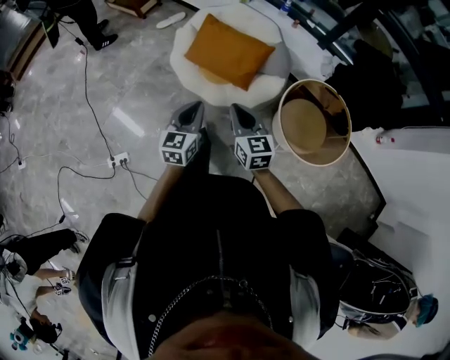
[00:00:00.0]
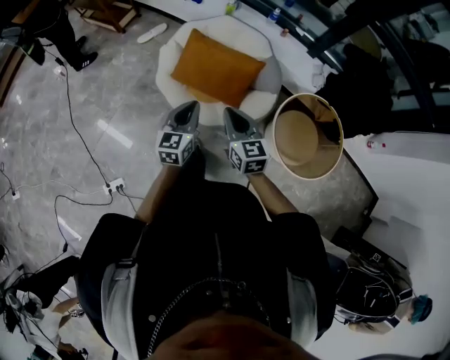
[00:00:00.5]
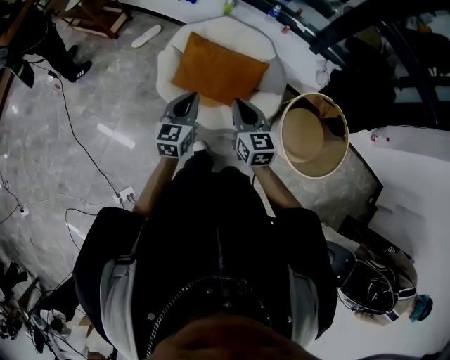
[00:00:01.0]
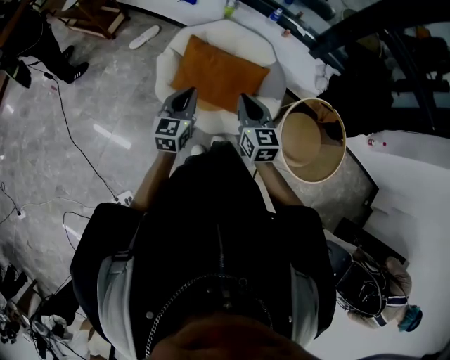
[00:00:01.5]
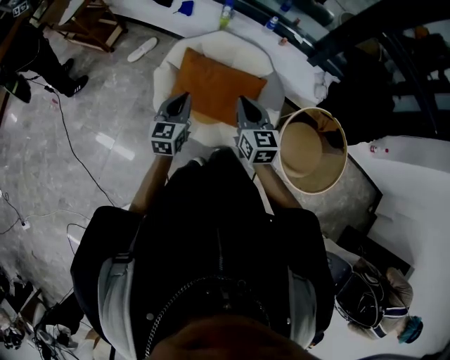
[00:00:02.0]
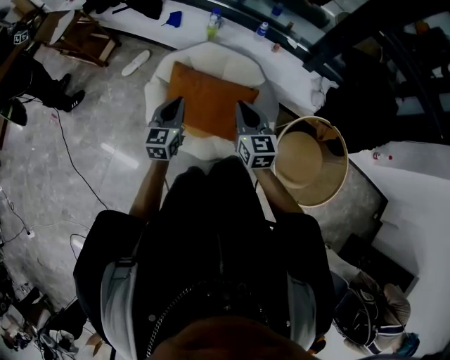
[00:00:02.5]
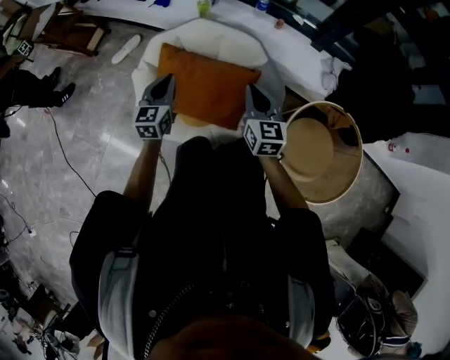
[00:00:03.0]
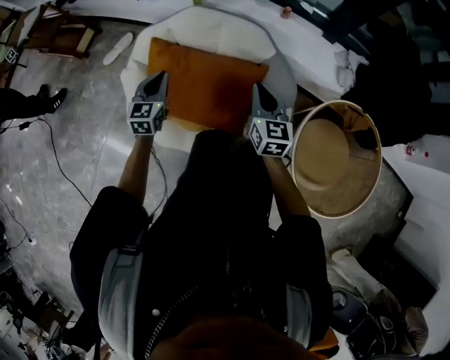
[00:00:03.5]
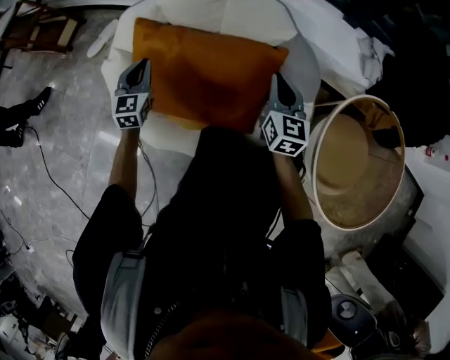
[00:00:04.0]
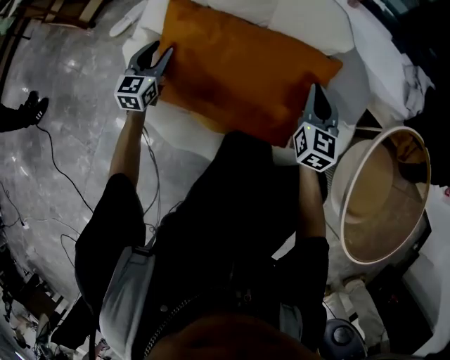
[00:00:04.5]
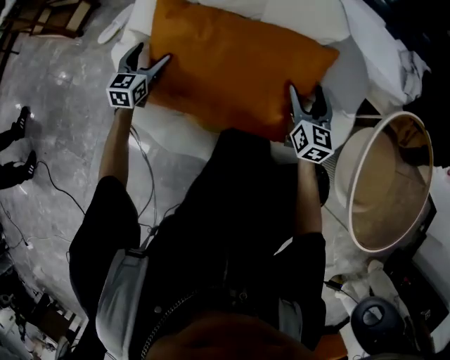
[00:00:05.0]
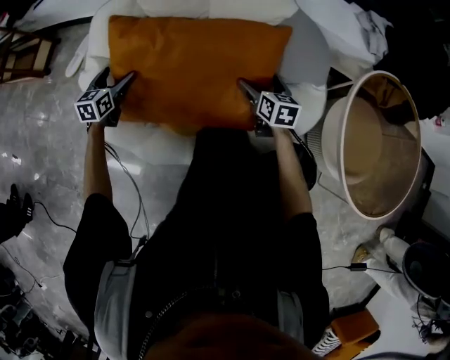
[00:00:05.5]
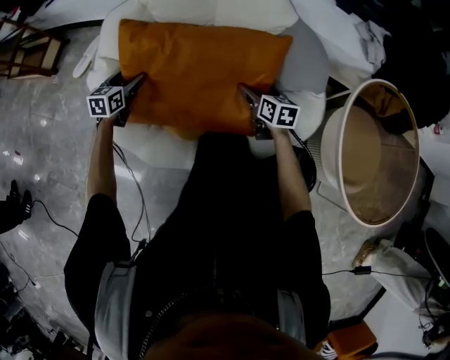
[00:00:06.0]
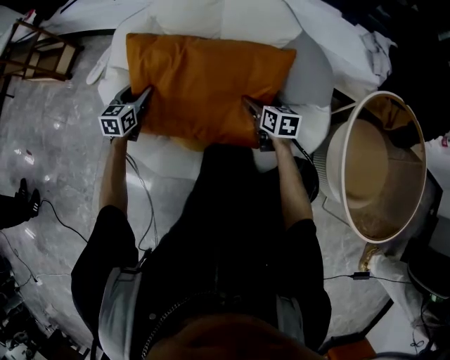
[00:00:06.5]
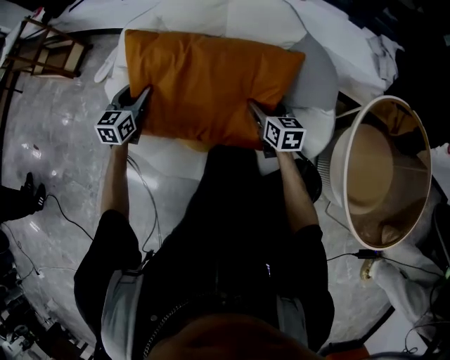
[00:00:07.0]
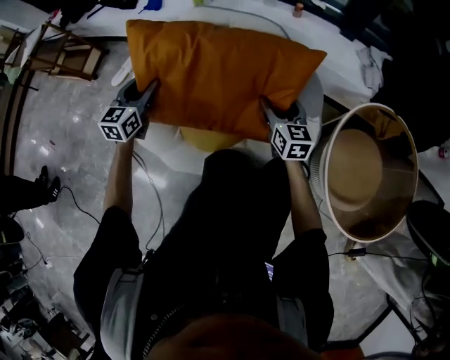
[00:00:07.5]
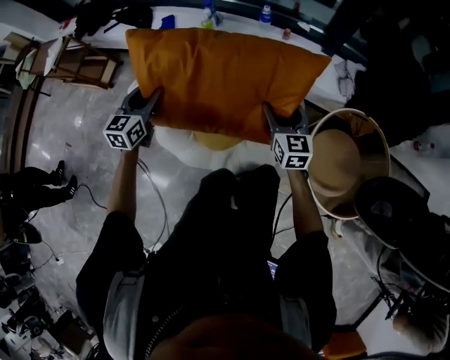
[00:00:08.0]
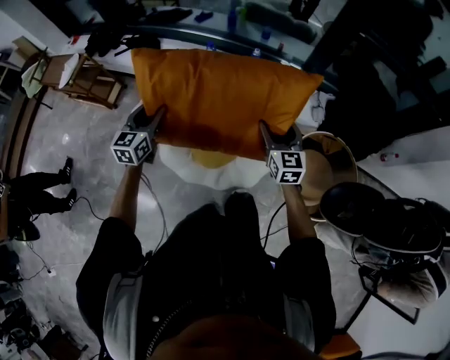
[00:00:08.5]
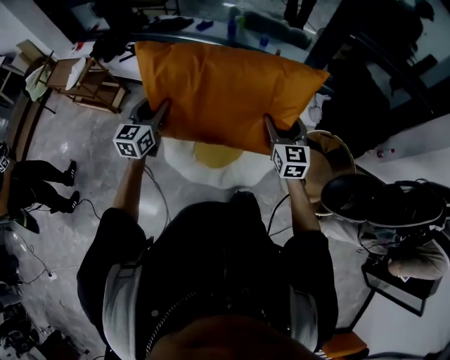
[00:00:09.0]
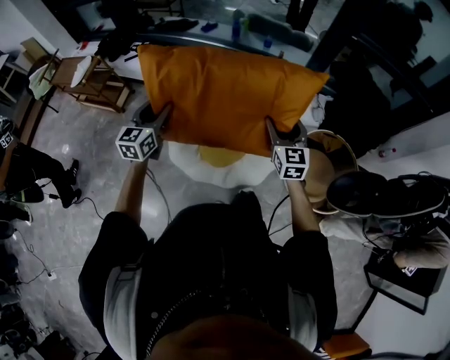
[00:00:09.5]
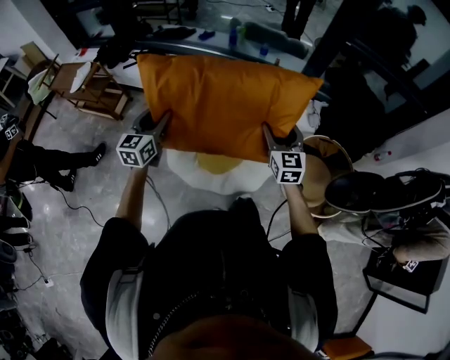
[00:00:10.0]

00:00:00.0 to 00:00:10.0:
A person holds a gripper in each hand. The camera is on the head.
00:00:00.0 to 00:00:02.0: Both grippers move forward, some 35 cm.
00:00:02.0 to 00:00:04.0: The right gripper heads downward, to the right and forward, covering about 50 cm; the left gripper shifts some 50 cm downward and forward.
00:00:04.0 to 00:00:06.0: The left gripper shifts some 15 cm downward and to the left, turns by roughly 30 degrees, and opens; the right gripper shifts about 25 cm downward, swivels approximately 30 degrees, and opens its fingers.
00:00:06.0 to 00:00:08.0: The grippers both shift upward by approximately 50 cm. The right gripper turns by about 30 degrees.
00:00:08.0 to 00:00:10.0: Both grippers travel together upward and backward, roughly 30 cm.

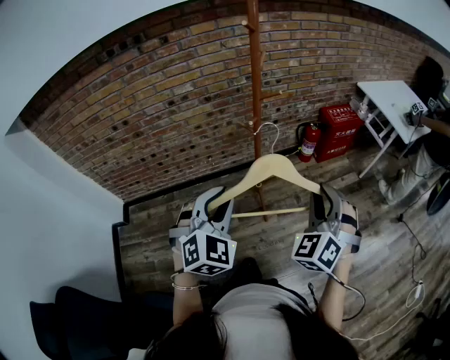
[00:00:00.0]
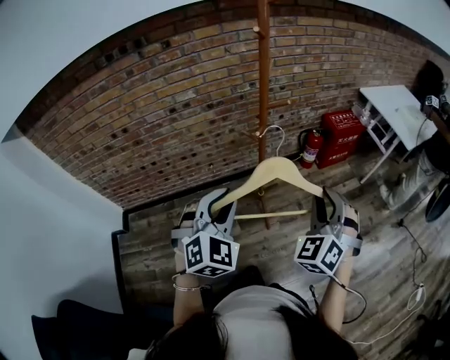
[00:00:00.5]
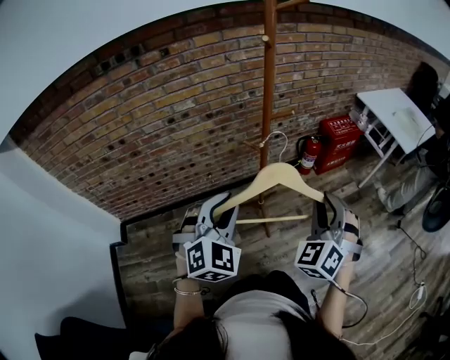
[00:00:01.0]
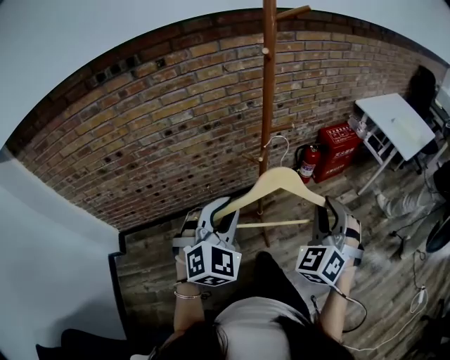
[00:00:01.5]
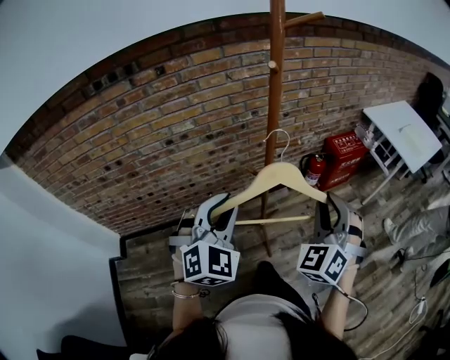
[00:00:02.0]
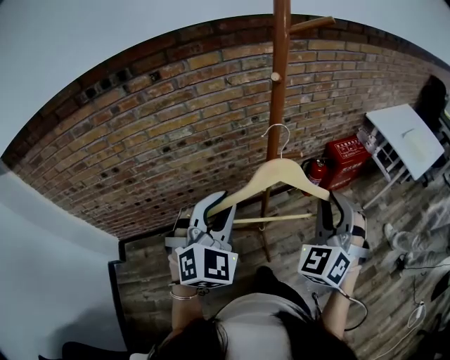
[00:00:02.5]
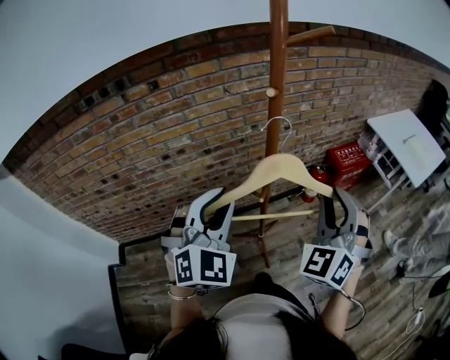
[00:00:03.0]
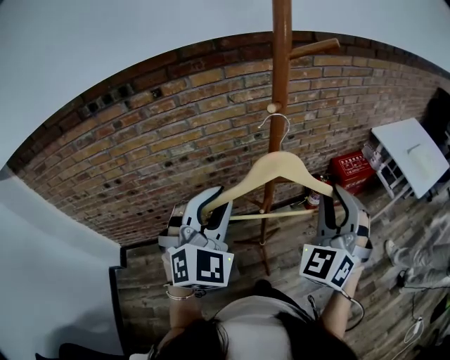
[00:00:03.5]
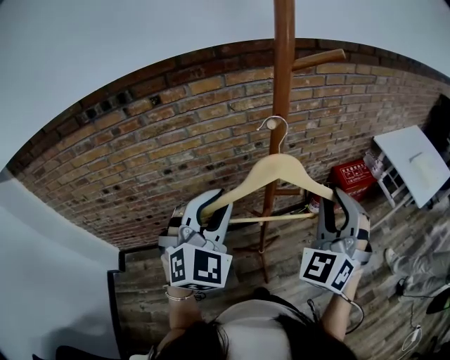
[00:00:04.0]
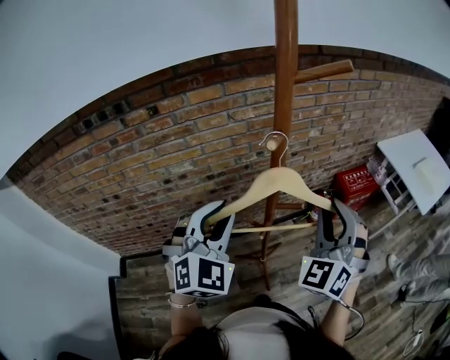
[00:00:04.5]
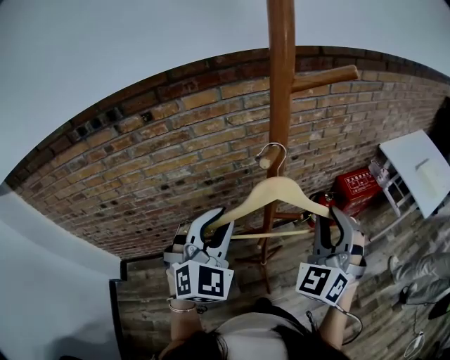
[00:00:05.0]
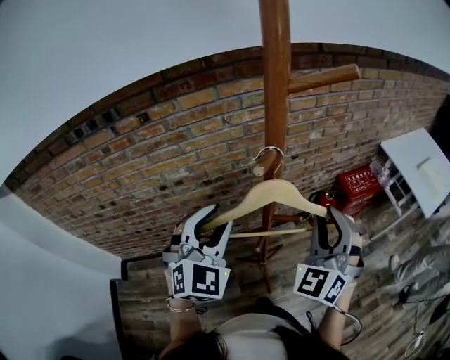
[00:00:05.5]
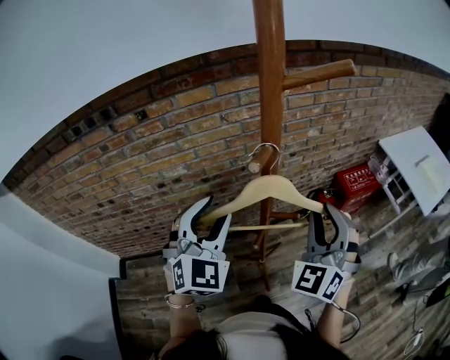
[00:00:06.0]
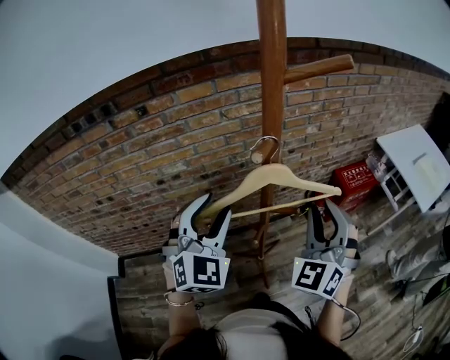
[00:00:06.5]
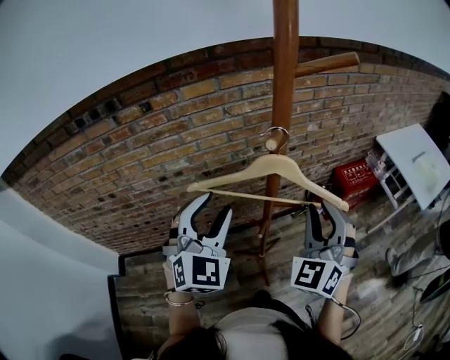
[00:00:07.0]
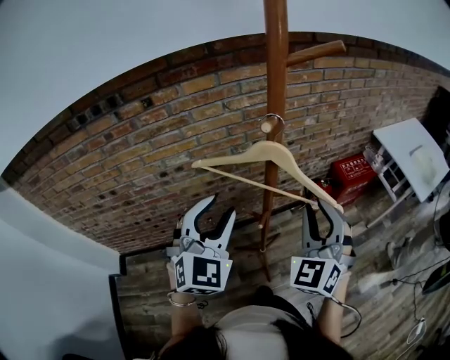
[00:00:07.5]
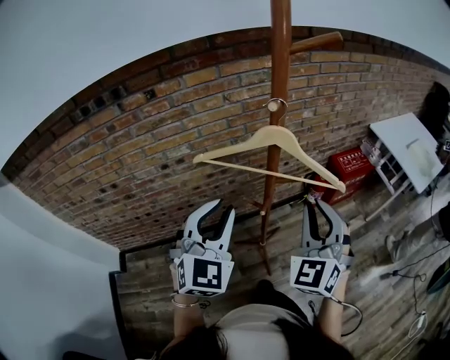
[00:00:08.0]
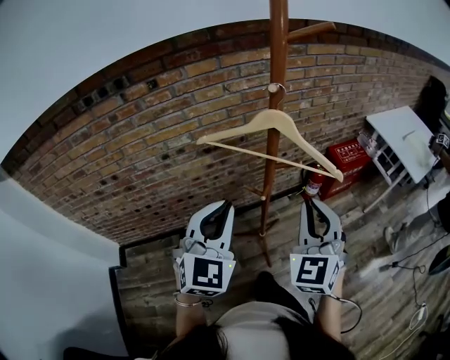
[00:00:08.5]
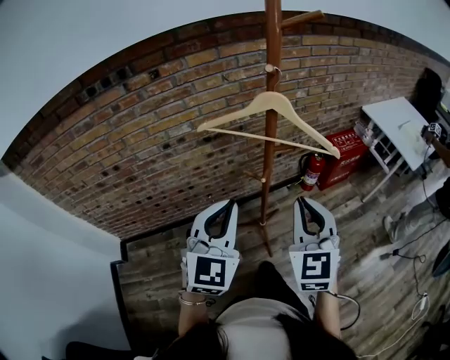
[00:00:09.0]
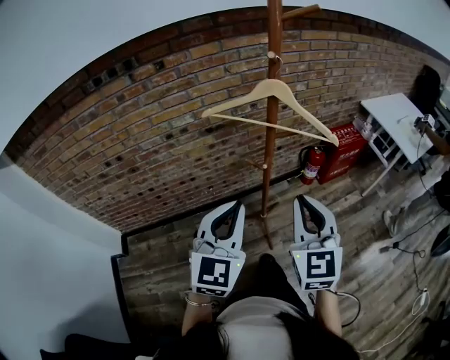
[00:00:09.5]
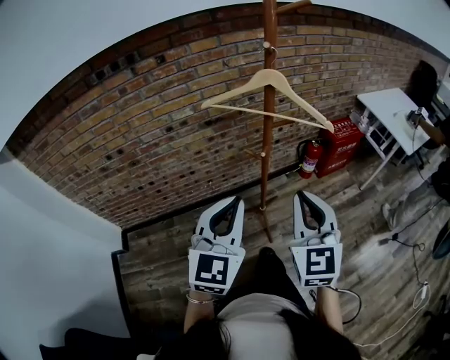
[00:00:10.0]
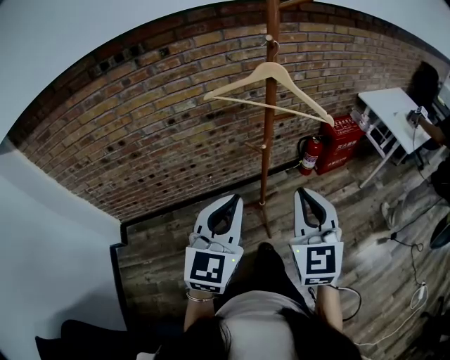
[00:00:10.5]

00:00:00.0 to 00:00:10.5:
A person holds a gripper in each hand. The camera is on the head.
00:00:00.0 to 00:00:02.0: Both grippers travel together forward and to the left, some 20 cm.
00:00:02.0 to 00:00:04.0: The grippers both shift forward and upward by about 15 cm.
00:00:04.0 to 00:00:06.5: Both grippers travel together forward, roughly 5 cm. The left gripper opens its fingers.
00:00:06.5 to 00:00:08.5: The grippers both shift backward by approximately 15 cm. The left gripper closes its fingers.
00:00:08.5 to 00:00:10.5: Both grippers move backward, approximately 15 cm.

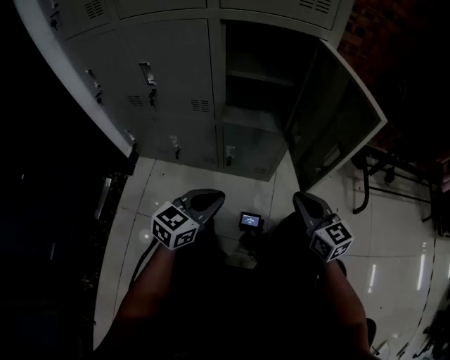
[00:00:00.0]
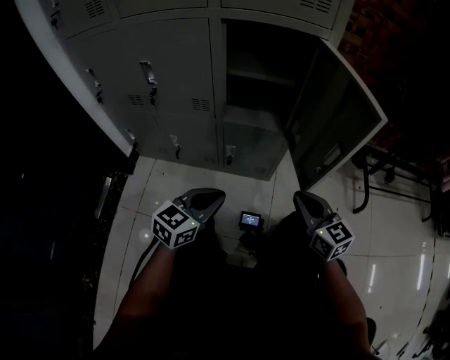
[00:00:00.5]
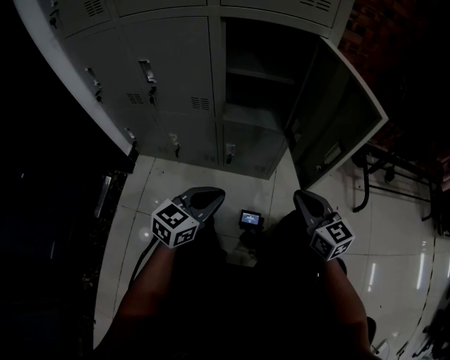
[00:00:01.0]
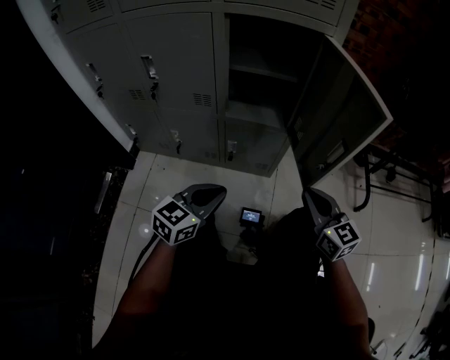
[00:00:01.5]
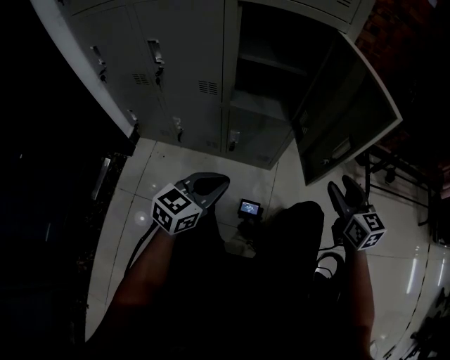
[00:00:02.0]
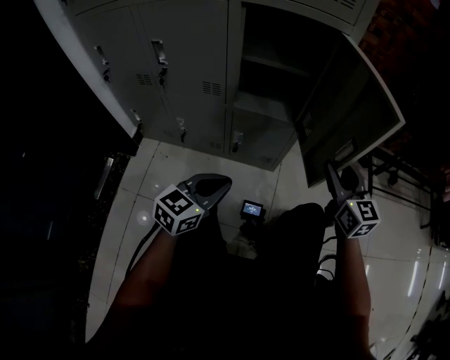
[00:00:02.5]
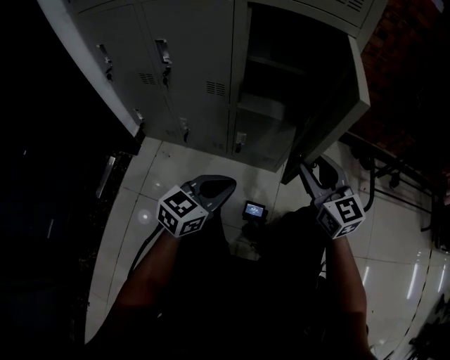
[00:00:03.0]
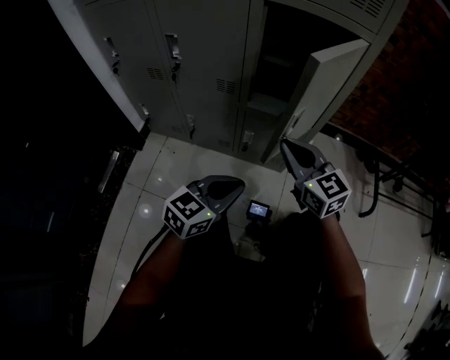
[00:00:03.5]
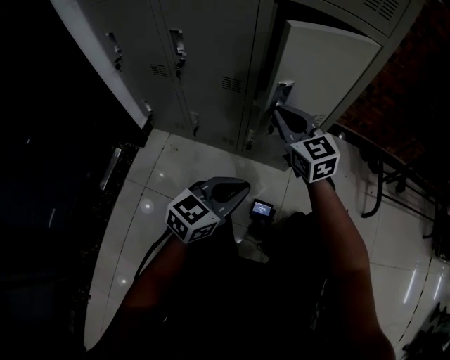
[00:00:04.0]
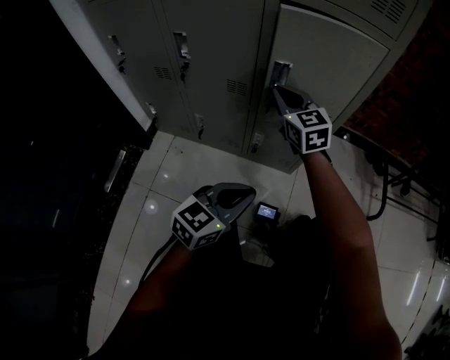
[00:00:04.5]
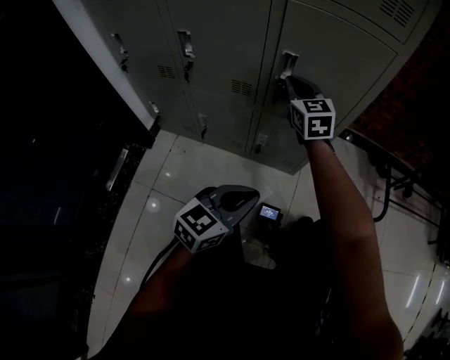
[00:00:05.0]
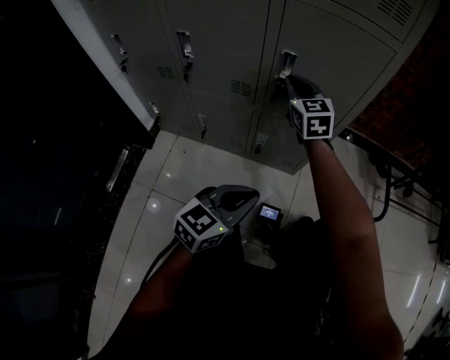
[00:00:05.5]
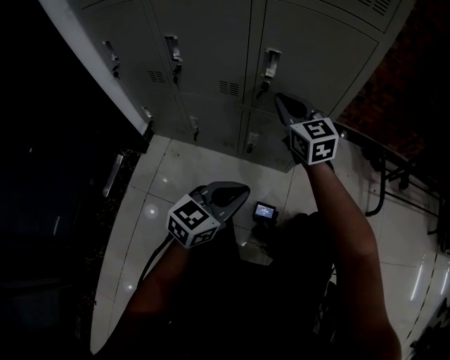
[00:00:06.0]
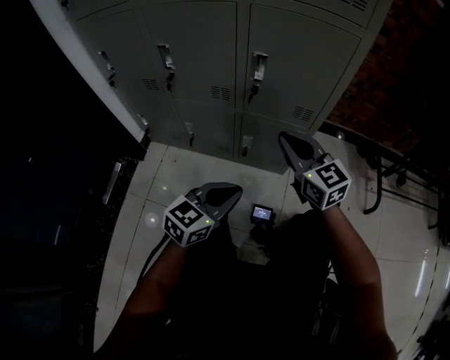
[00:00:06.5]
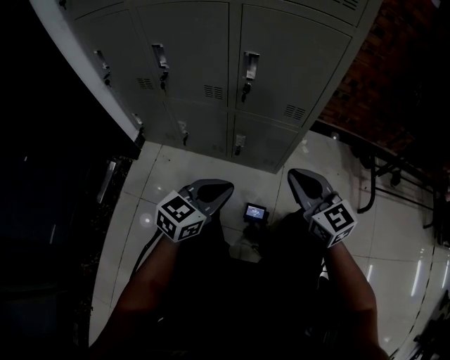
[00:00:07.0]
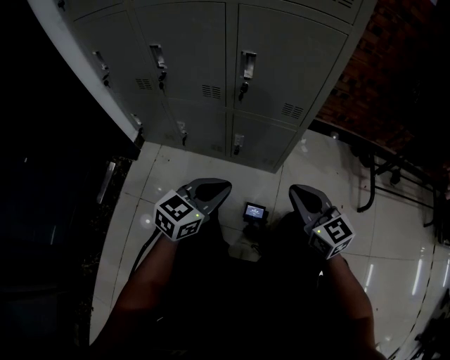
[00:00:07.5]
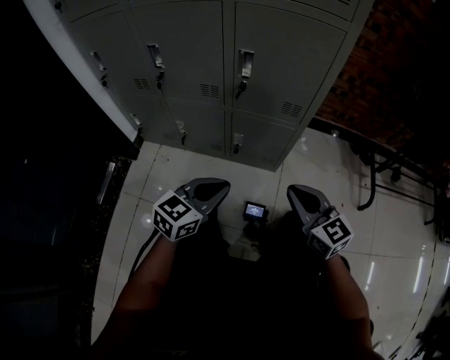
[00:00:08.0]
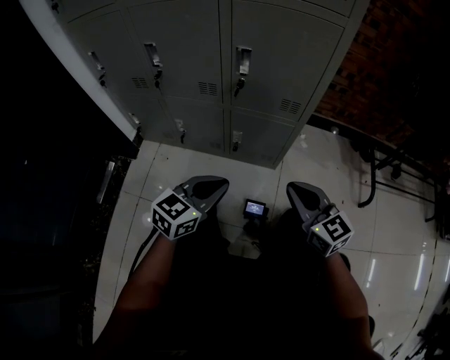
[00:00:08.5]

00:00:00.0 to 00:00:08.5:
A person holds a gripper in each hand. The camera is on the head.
00:00:00.0 to 00:00:02.0: The right gripper moves to the right, approximately 10 cm, and opens.
00:00:02.0 to 00:00:04.0: The right gripper goes roughly 30 cm to the left, changes its angle by some 30 degrees, and closes.
00:00:04.0 to 00:00:06.5: The right gripper heads to the right, covering some 5 cm, and moves approximately 10 cm forward and comes back.
00:00:06.5 to 00:00:08.5: The right gripper goes roughly 15 cm backward, to the right and downward.
